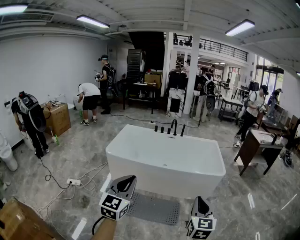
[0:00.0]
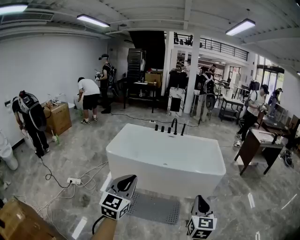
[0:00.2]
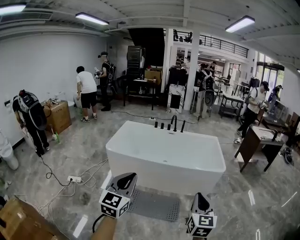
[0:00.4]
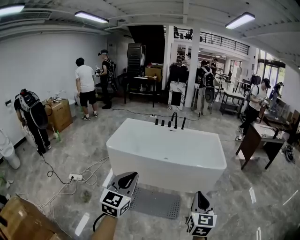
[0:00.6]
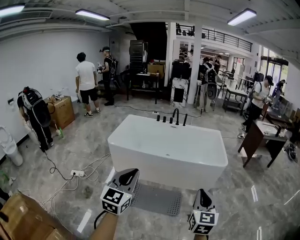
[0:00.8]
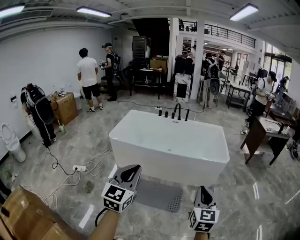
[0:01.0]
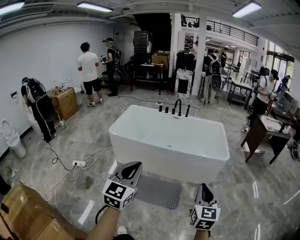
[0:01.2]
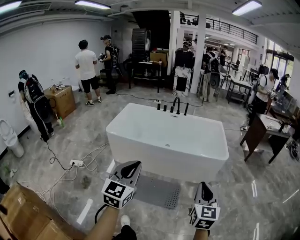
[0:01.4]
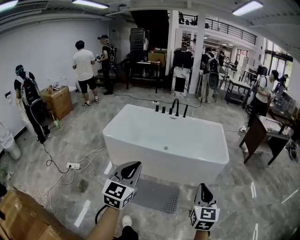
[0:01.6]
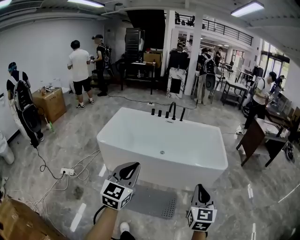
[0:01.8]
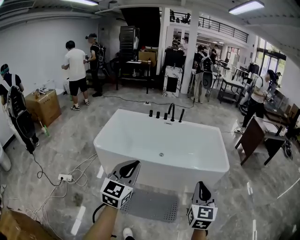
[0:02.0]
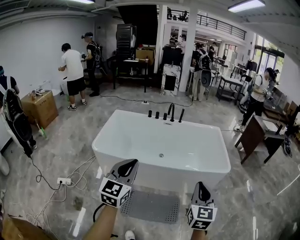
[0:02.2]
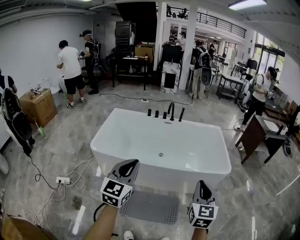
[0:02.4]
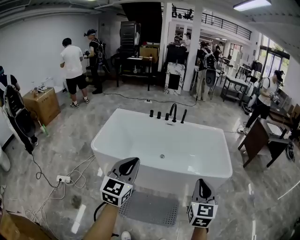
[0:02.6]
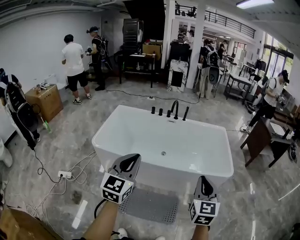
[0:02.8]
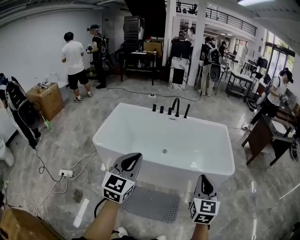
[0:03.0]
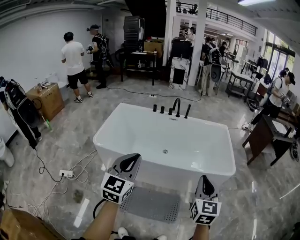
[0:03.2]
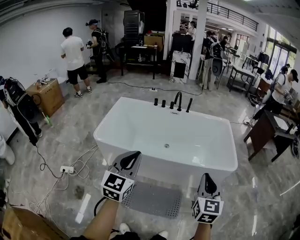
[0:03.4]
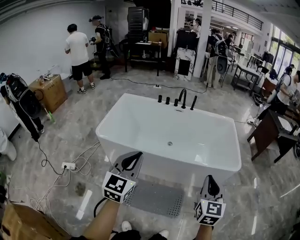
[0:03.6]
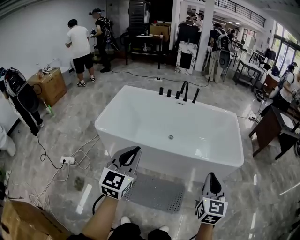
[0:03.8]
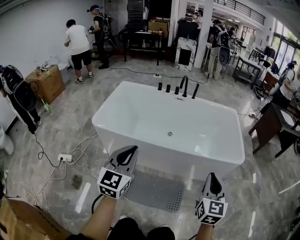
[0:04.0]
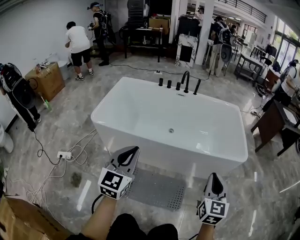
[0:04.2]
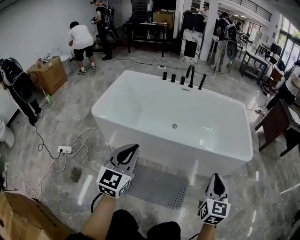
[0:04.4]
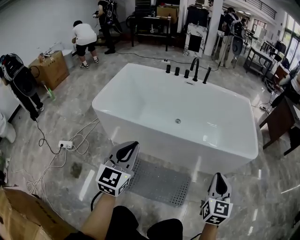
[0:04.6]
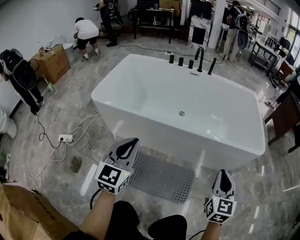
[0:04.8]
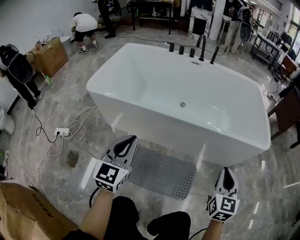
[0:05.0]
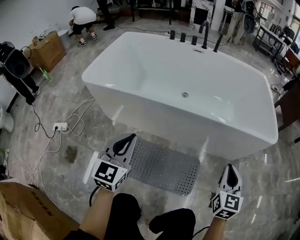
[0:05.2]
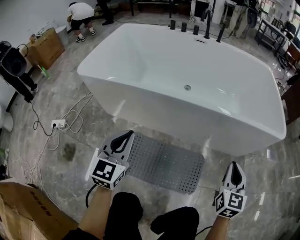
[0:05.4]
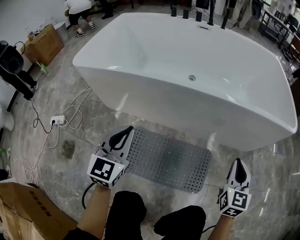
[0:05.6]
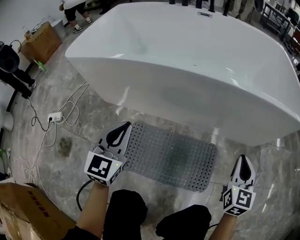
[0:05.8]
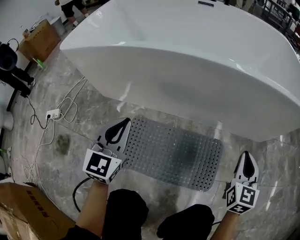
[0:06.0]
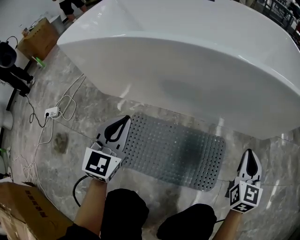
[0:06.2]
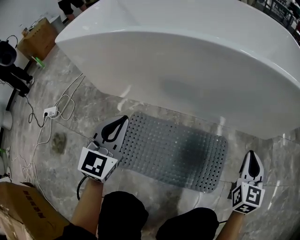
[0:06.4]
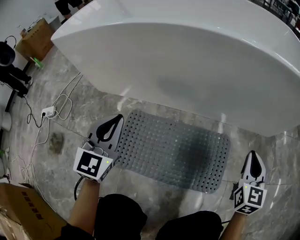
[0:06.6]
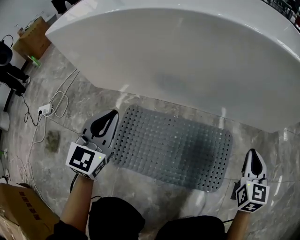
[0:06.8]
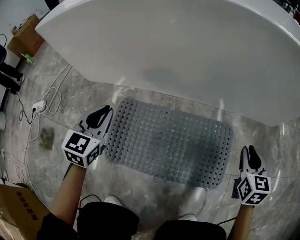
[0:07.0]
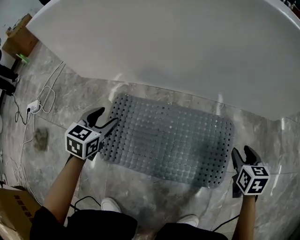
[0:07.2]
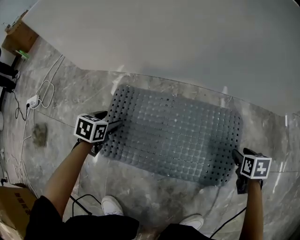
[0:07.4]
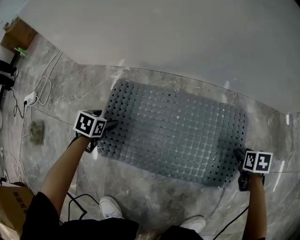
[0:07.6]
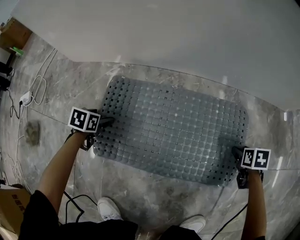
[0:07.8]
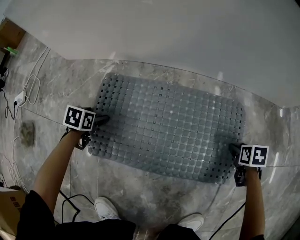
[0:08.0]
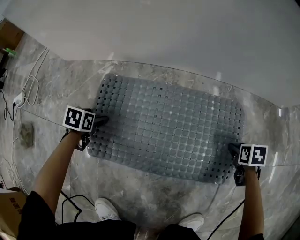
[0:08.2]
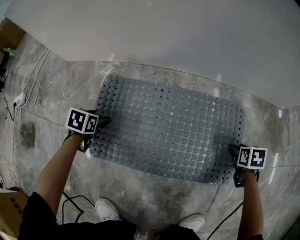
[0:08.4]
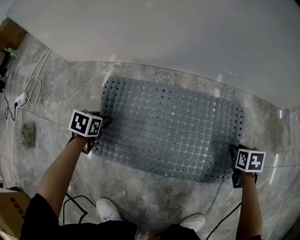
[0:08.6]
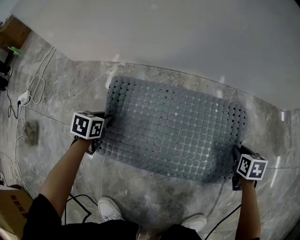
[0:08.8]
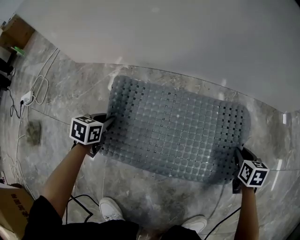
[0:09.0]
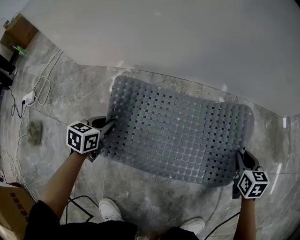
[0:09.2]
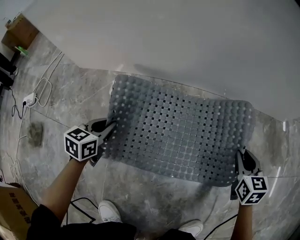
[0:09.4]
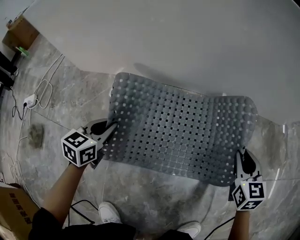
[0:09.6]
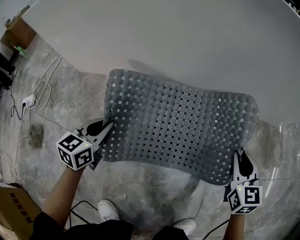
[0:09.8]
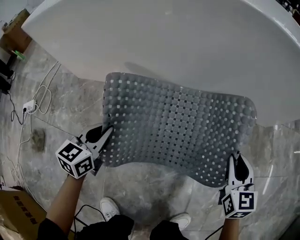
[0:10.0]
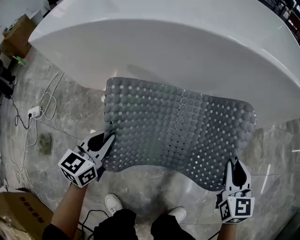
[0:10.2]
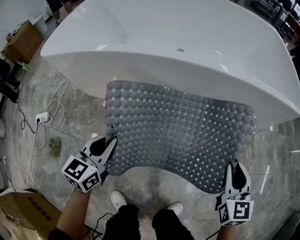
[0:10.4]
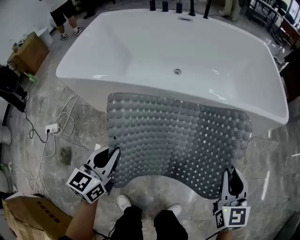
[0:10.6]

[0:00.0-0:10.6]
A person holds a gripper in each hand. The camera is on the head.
0:00.0 to 0:01.6: The grippers both shift forward and to the right by approximately 10 cm.
0:01.6 to 0:03.0: Both grippers move forward, some 25 cm.
0:03.0 to 0:04.6: The grippers both shift downward by some 25 cm.
0:04.6 to 0:06.0: Both grippers move downward, roughly 40 cm.
0:06.0 to 0:07.6: The two grippers go some 40 cm downward. The left gripper angles its fingers downward, by about 60 degrees, and opens up. The right gripper tips its fingers downward by approximately 50 degrees, and opens up.
0:07.6 to 0:09.0: The left gripper closes its fingers; the right gripper closes up.
0:09.0 to 0:10.6: The two grippers go about 40 cm upward. The right gripper tips its fingers upward by approximately 30 degrees, while the left gripper tips its fingers upward by approximately 30 degrees.

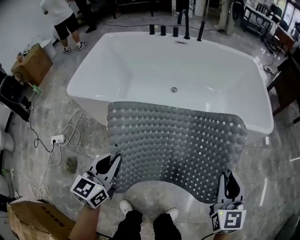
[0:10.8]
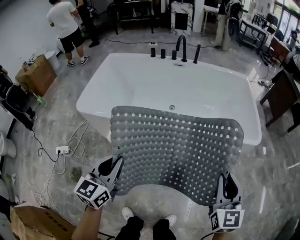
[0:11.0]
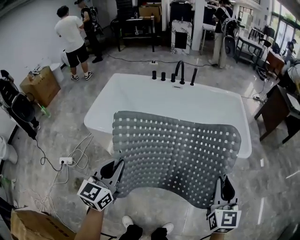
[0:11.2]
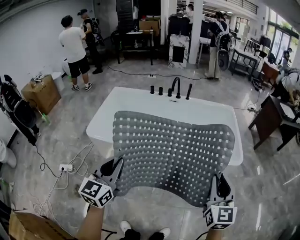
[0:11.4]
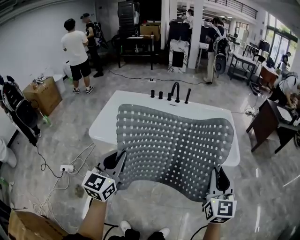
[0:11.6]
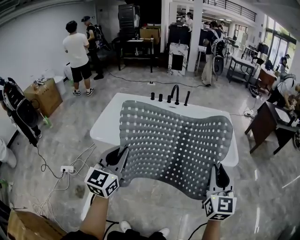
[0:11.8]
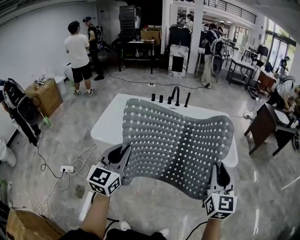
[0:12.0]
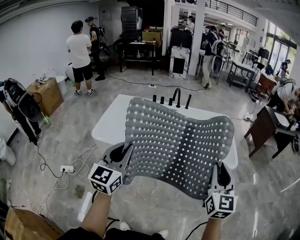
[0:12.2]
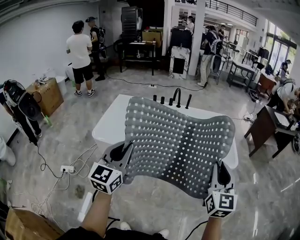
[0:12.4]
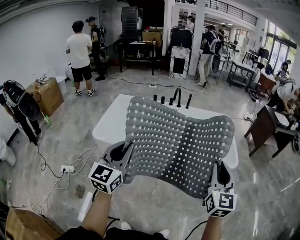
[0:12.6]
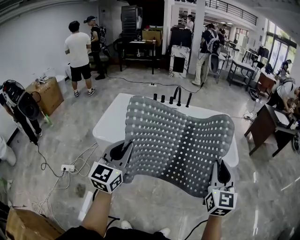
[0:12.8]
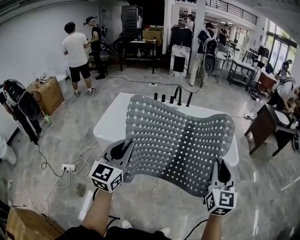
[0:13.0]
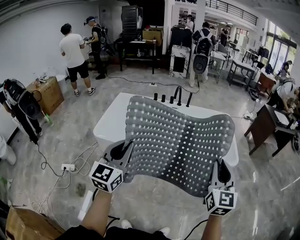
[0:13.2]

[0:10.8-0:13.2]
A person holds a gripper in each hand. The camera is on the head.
0:10.8 to 0:12.0: Both grippers travel together upward, roughly 40 cm. The left gripper swivels roughly 20 degrees.
0:12.0 to 0:13.2: The grippers make only small movements.

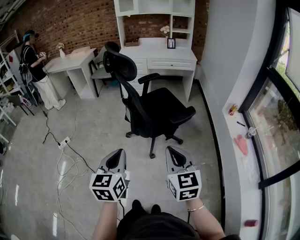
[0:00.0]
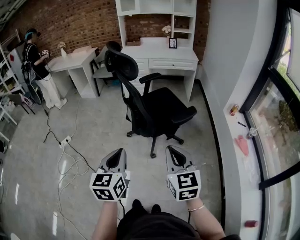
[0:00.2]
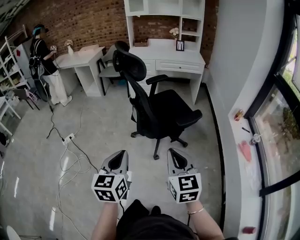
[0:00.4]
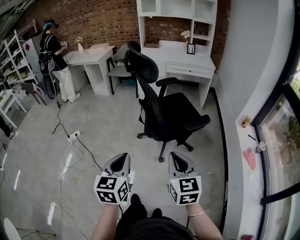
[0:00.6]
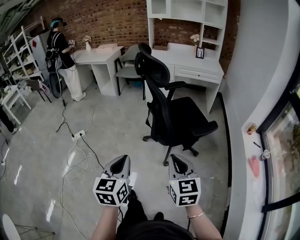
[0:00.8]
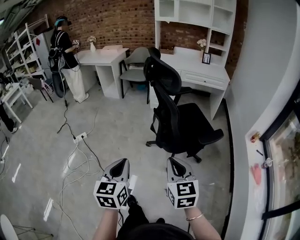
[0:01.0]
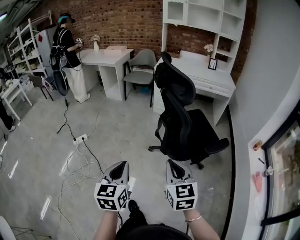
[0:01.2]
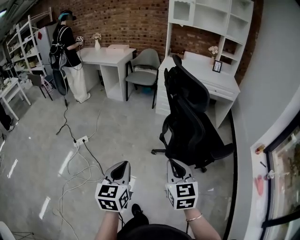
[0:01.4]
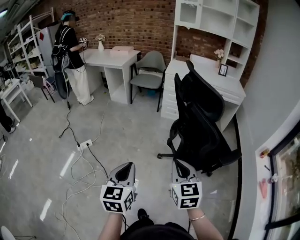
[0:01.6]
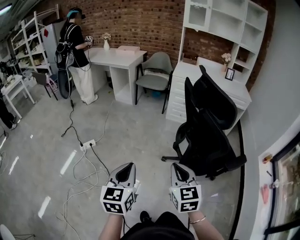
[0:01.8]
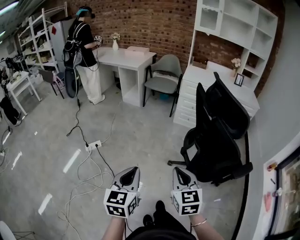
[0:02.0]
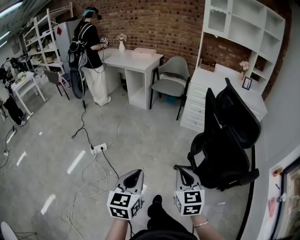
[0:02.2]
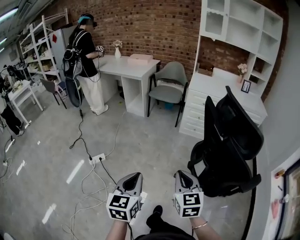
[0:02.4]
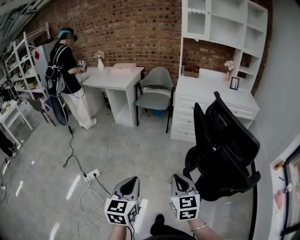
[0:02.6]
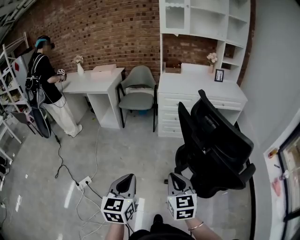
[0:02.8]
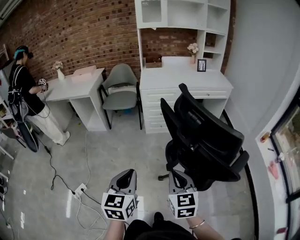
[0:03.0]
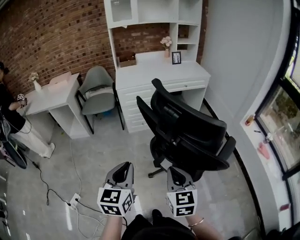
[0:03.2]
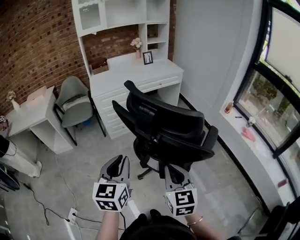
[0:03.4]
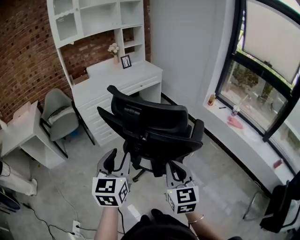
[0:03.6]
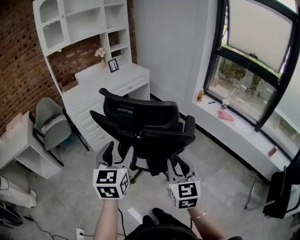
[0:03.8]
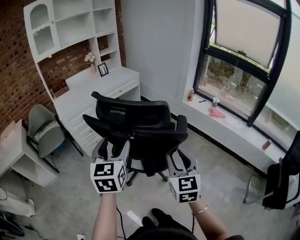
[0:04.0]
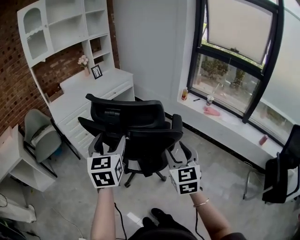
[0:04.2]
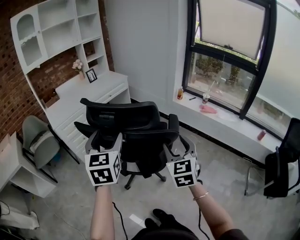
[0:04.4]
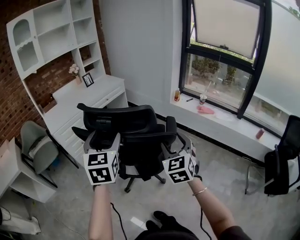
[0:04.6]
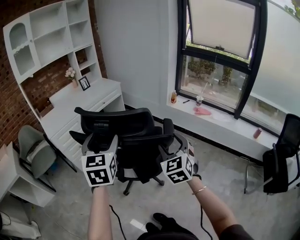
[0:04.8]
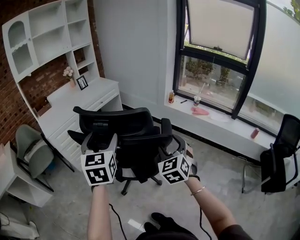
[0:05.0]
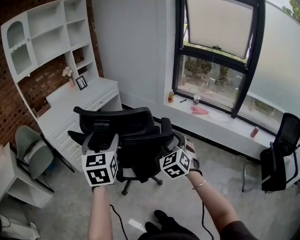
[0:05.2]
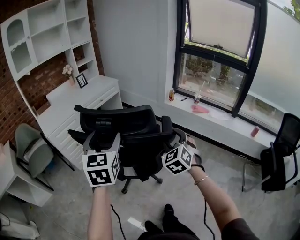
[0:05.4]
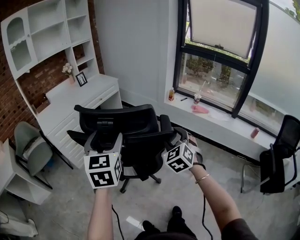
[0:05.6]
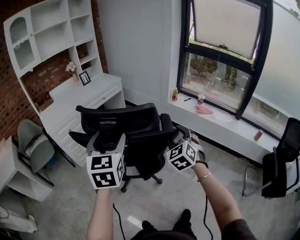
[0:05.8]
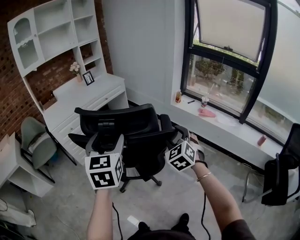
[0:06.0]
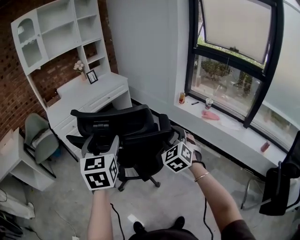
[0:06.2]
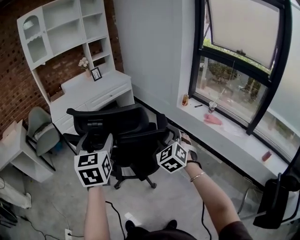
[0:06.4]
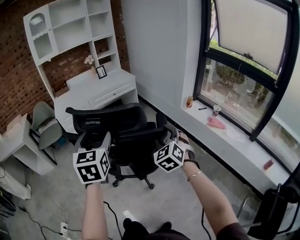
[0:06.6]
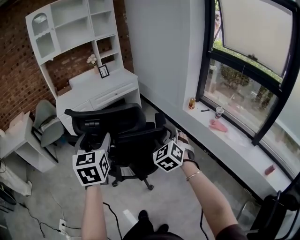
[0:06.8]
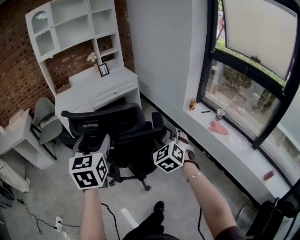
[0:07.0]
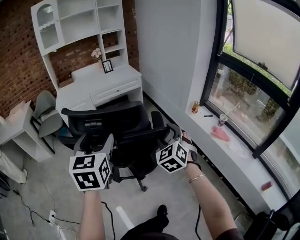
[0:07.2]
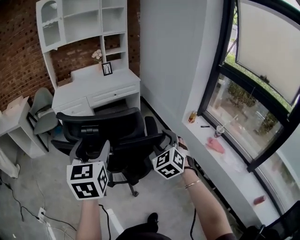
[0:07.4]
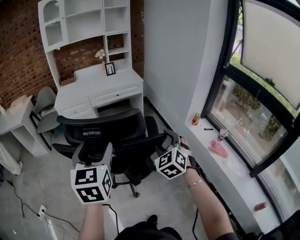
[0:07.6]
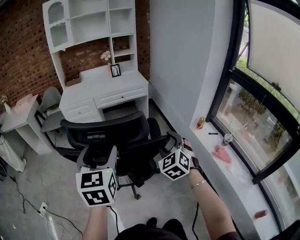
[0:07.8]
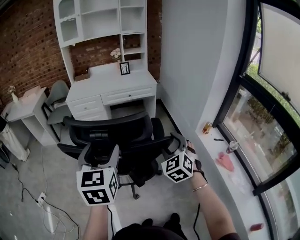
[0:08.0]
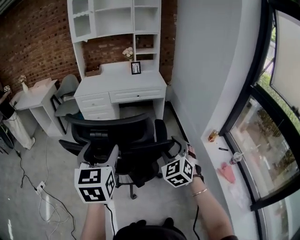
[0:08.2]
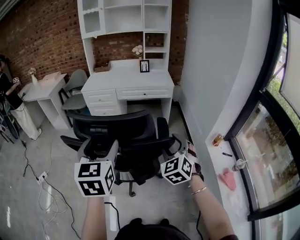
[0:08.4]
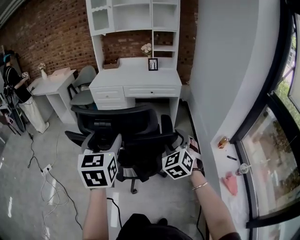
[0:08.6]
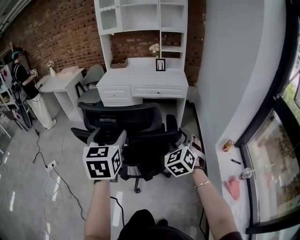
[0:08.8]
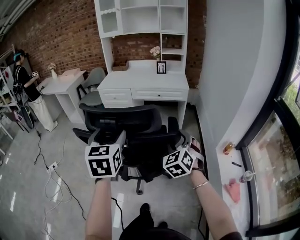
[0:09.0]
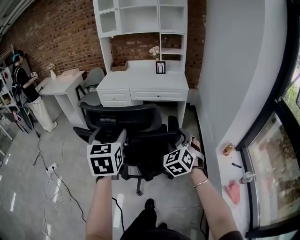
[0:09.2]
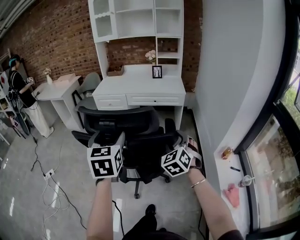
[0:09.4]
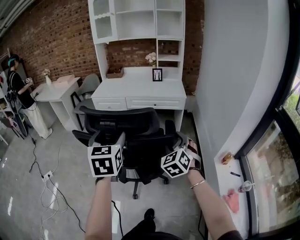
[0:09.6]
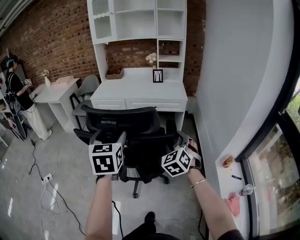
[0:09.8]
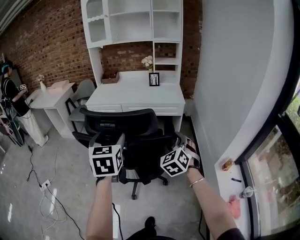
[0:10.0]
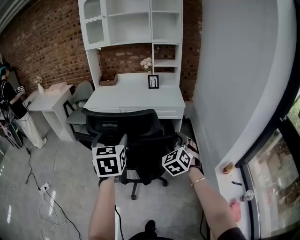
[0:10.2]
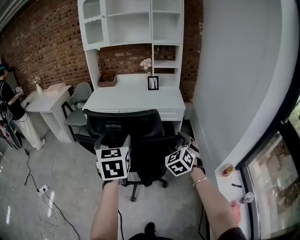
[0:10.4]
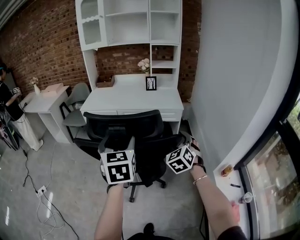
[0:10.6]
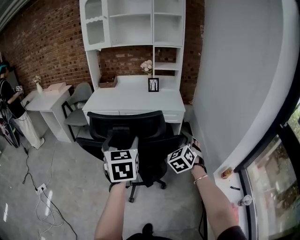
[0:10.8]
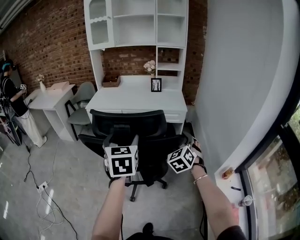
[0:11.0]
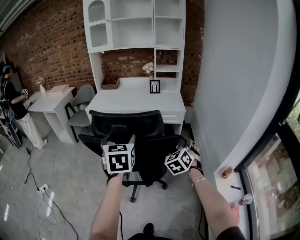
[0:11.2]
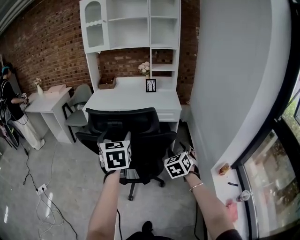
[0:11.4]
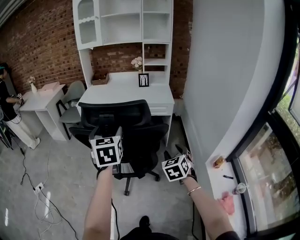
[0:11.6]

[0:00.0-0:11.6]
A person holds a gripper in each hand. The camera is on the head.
0:00.0 to 0:01.4: Both grippers travel together to the left and forward, some 30 cm.
0:01.4 to 0:02.8: The left gripper goes about 30 cm forward; the right gripper goes some 30 cm forward and to the left.
0:02.8 to 0:04.4: The left gripper shifts by some 30 cm, changes its angle by about 50 degrees, and opens up. The right gripper ends up about 25 cm from where it was, turns by about 60 degrees, and opens its fingers.
0:04.4 to 0:05.8: The left gripper moves to the right, some 5 cm. Meanwhile the right gripper shifts about 10 cm forward and to the right, and swivels some 30 degrees.
0:05.8 to 0:07.2: The left gripper changes place by approximately 20 cm, and turns by about 30 degrees. The right gripper shifts by about 20 cm, and turns by approximately 30 degrees.
0:07.2 to 0:08.8: The left gripper ends up about 20 cm from where it was, and rotates approximately 30 degrees. The right gripper shifts by approximately 20 cm, and changes its angle by about 30 degrees.
0:08.8 to 0:10.2: The two grippers go some 25 cm forward.
0:10.2 to 0:11.6: The right gripper shifts about 10 cm backward.
